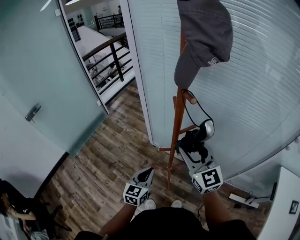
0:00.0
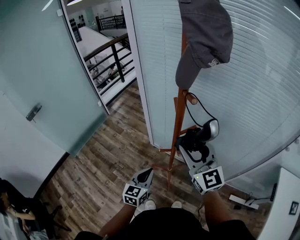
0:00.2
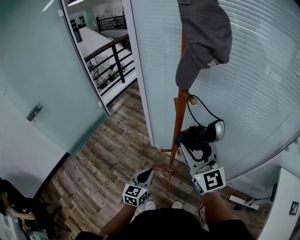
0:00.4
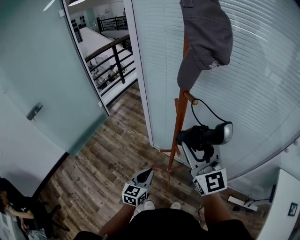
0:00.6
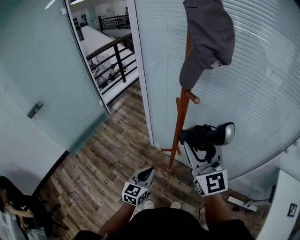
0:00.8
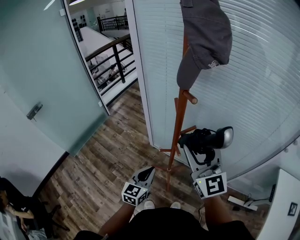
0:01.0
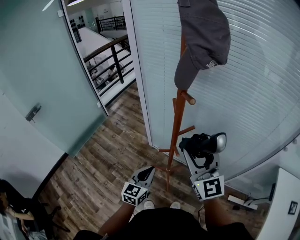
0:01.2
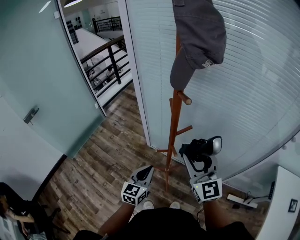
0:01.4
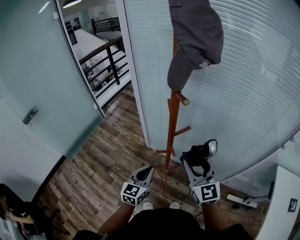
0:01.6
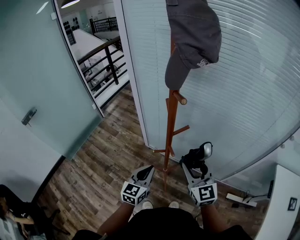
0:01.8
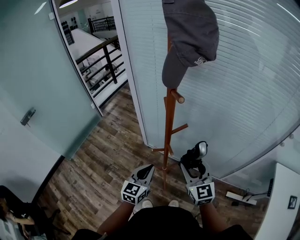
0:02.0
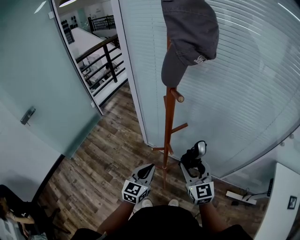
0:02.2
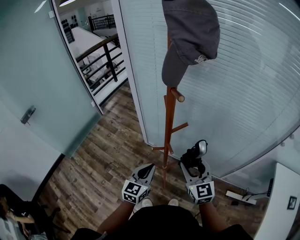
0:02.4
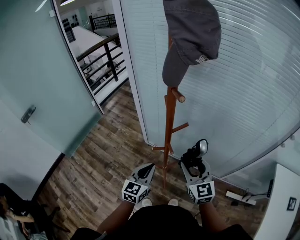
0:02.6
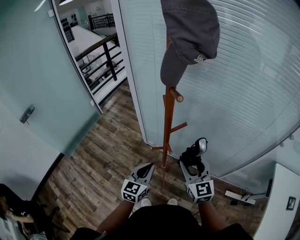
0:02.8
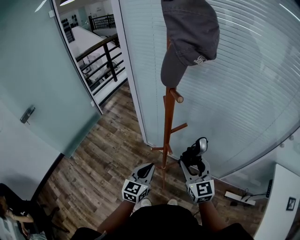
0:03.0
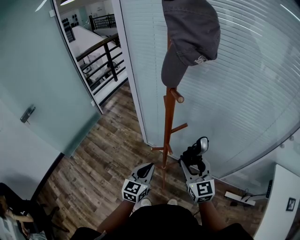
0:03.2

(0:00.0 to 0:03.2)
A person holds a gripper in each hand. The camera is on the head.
0:00.0 - 0:01.6: The right gripper goes upward and returns, about 10 cm each way.
0:01.6 - 0:03.2: The right gripper moves downward, roughly 5 cm.

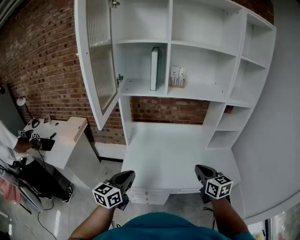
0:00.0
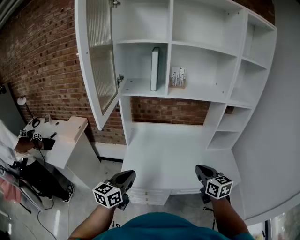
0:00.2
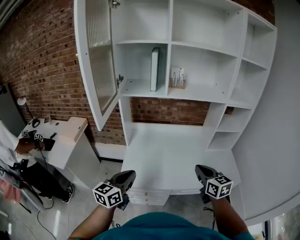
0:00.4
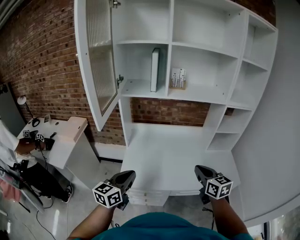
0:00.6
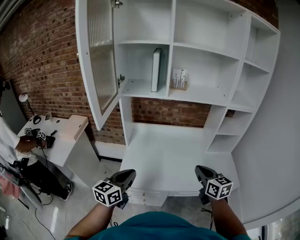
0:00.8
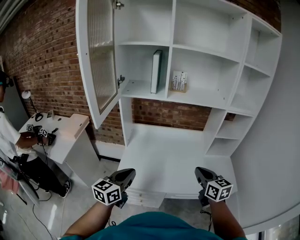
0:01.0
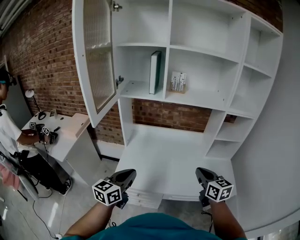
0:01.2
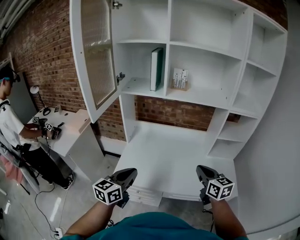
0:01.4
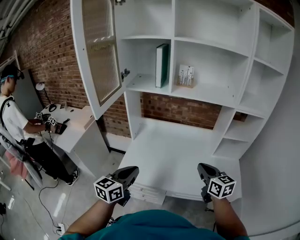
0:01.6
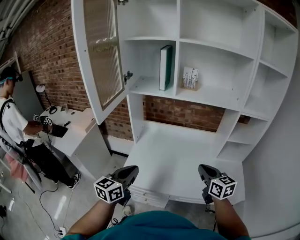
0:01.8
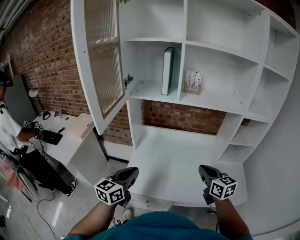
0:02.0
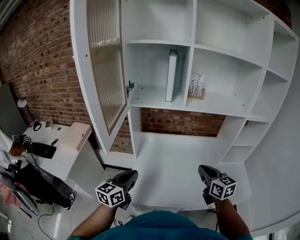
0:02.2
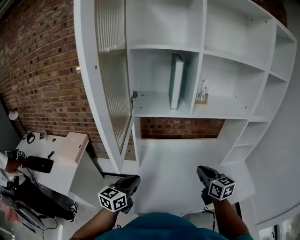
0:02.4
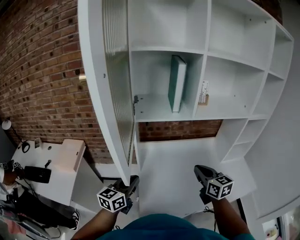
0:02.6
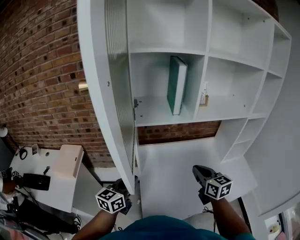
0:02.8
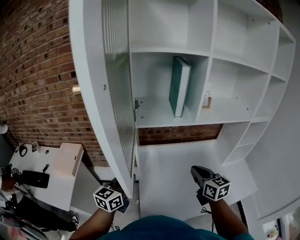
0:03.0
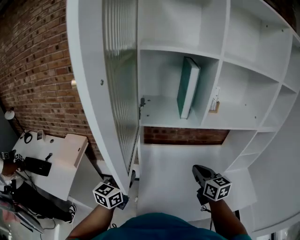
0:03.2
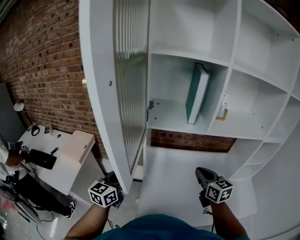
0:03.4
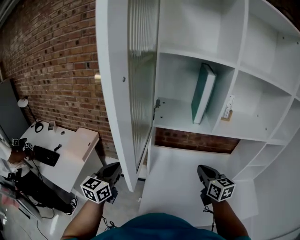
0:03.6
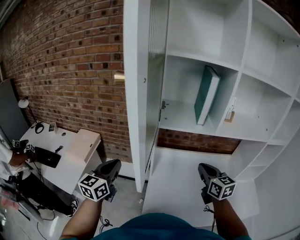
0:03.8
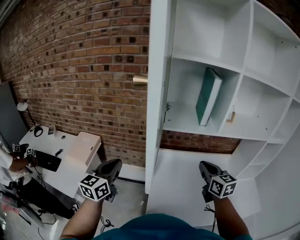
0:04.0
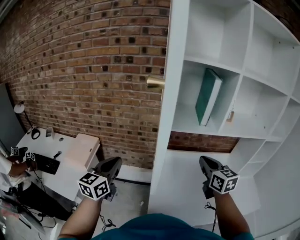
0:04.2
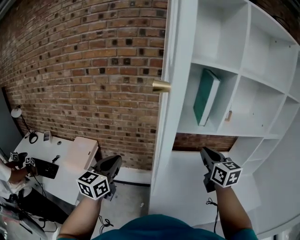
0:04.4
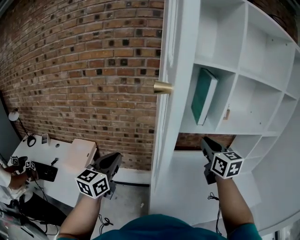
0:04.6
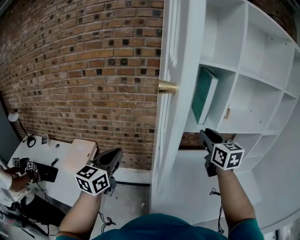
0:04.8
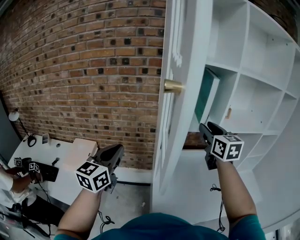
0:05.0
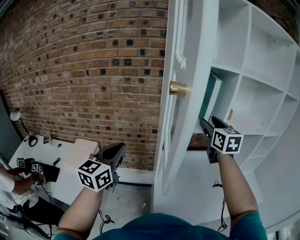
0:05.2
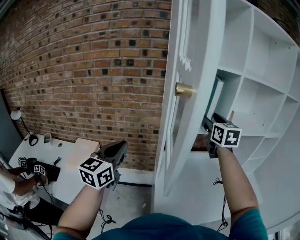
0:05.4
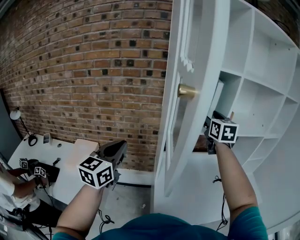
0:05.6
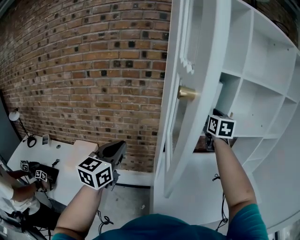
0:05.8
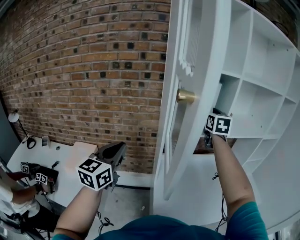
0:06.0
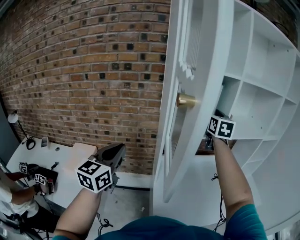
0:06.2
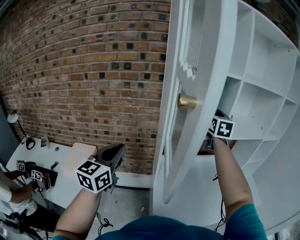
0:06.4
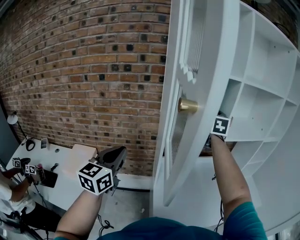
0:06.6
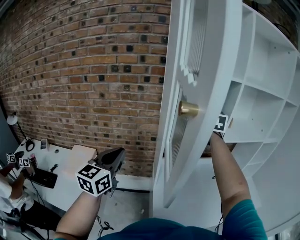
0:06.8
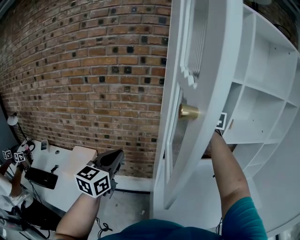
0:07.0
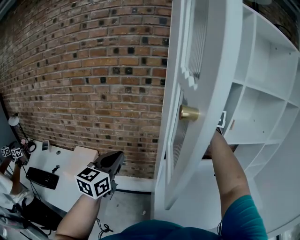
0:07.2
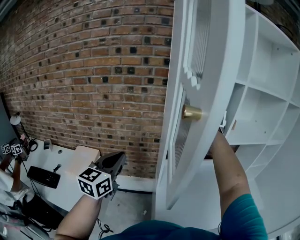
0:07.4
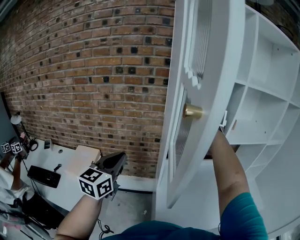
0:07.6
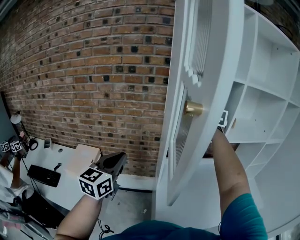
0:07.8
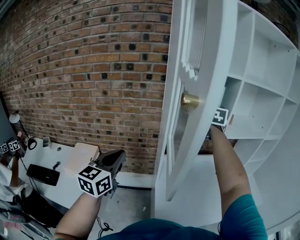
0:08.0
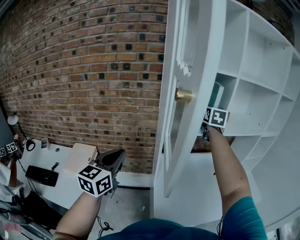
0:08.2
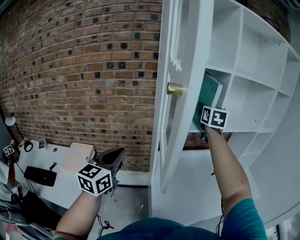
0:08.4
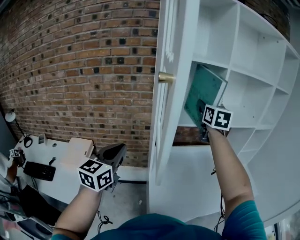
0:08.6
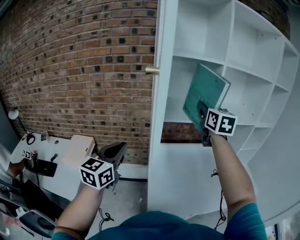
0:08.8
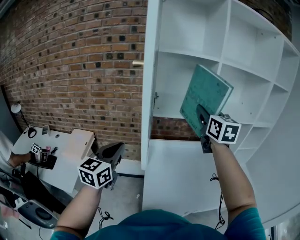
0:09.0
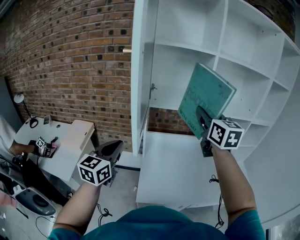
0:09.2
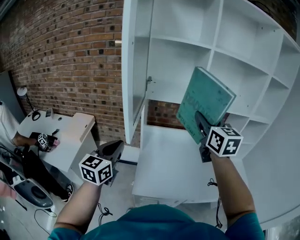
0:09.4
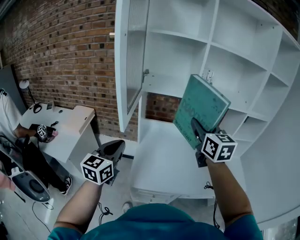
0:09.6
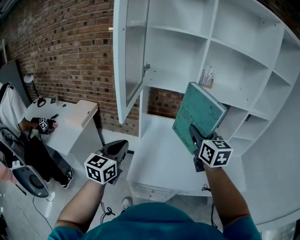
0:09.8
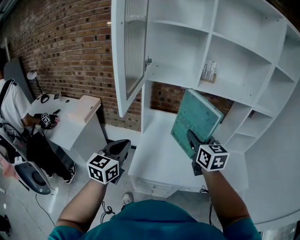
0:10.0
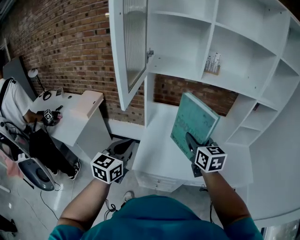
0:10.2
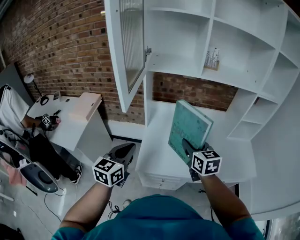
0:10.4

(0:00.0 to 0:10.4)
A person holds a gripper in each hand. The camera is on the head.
0:00.0 - 0:01.4: Both grippers travel together to the right, approximately 10 cm.
0:01.4 - 0:03.0: Both grippers move to the left and forward, roughly 30 cm.
0:03.0 - 0:04.4: The left gripper moves to the left and upward, roughly 20 cm, while the right gripper heads upward, to the left and forward, covering about 15 cm.
0:04.4 - 0:06.0: The right gripper goes approximately 20 cm forward and upward, rotates approximately 20 degrees, and opens, while the left gripper goes roughly 5 cm upward.
0:06.0 - 0:07.4: The grippers stay close to where they were, moving slightly.
0:07.4 - 0:09.0: The right gripper moves backward, roughly 15 cm, and closes its fingers. The left gripper is displaced to the right and backward by about 10 cm.
0:09.0 - 0:10.4: The left gripper travels downward, backward and to the right by about 25 cm. Meanwhile the right gripper heads downward and backward, covering some 35 cm, and rotates approximately 20 degrees.

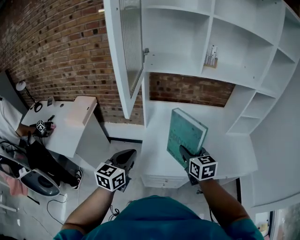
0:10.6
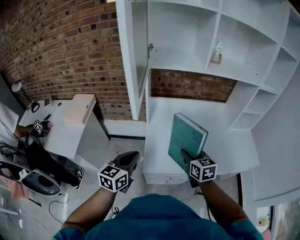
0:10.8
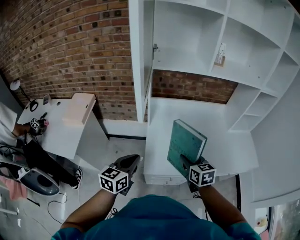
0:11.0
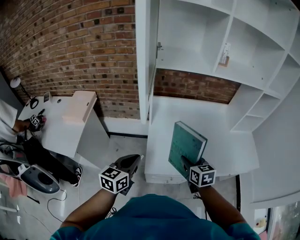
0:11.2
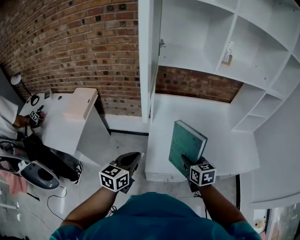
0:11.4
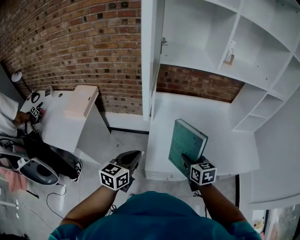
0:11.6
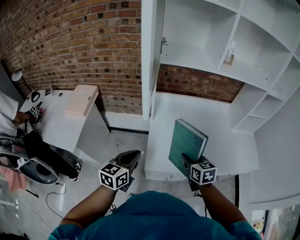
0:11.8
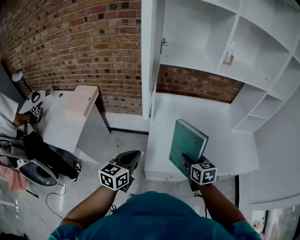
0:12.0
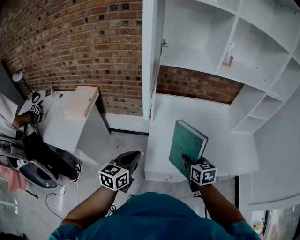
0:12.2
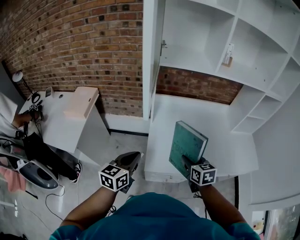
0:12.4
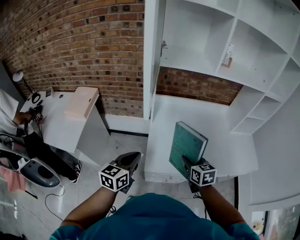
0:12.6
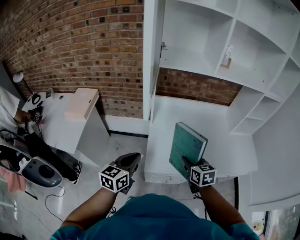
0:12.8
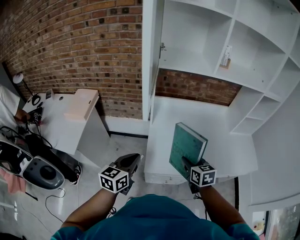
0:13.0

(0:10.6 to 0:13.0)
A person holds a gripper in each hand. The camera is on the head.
0:10.6 - 0:11.8: The right gripper goes roughly 10 cm downward, while the left gripper ends up roughly 5 cm from where it was.
0:11.8 - 0:13.0: Neither gripper changes place.

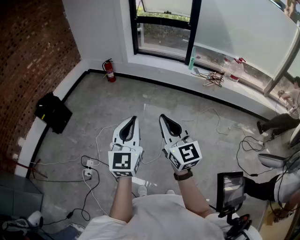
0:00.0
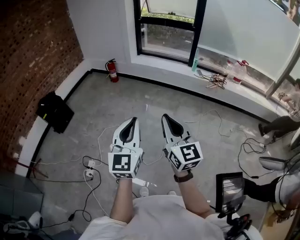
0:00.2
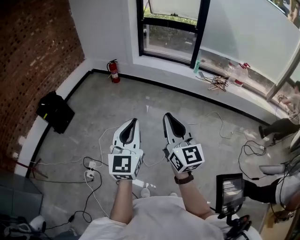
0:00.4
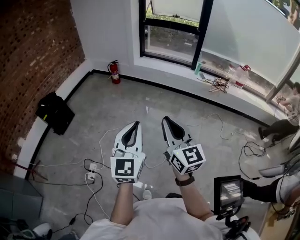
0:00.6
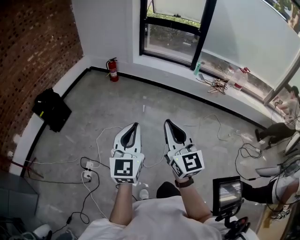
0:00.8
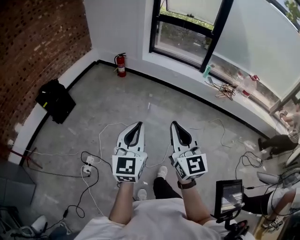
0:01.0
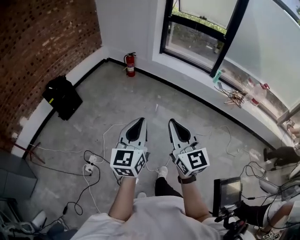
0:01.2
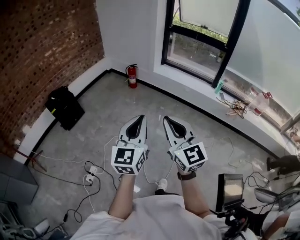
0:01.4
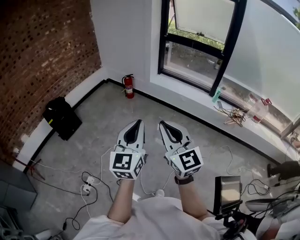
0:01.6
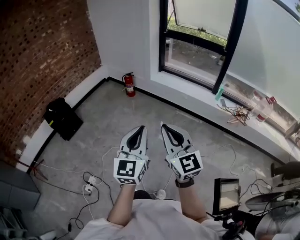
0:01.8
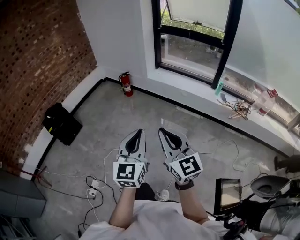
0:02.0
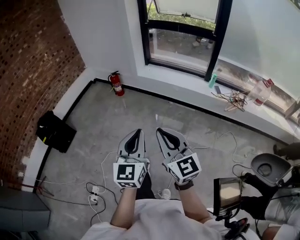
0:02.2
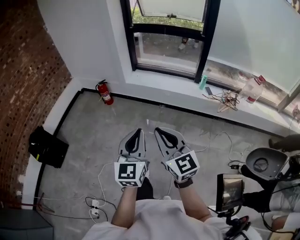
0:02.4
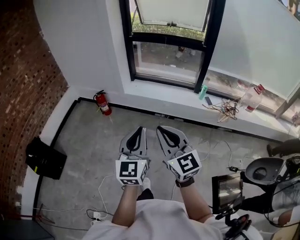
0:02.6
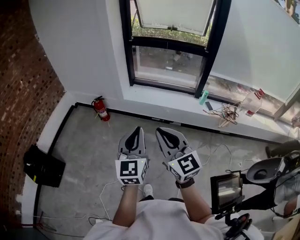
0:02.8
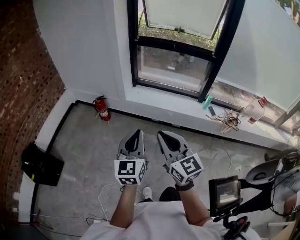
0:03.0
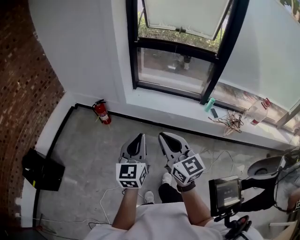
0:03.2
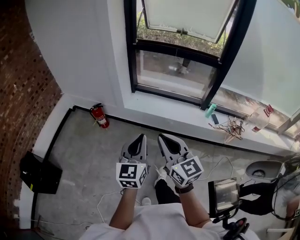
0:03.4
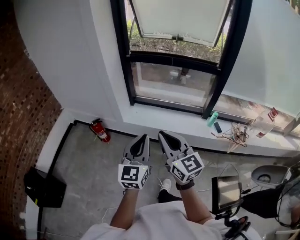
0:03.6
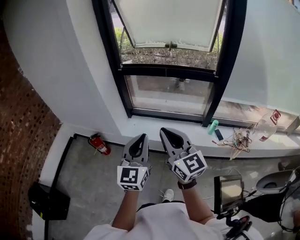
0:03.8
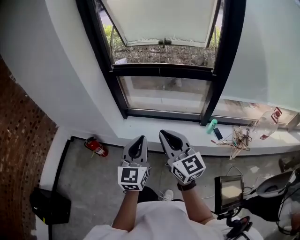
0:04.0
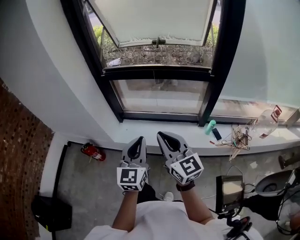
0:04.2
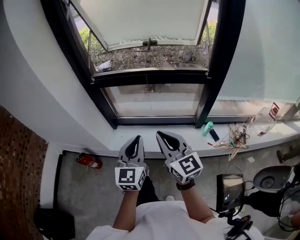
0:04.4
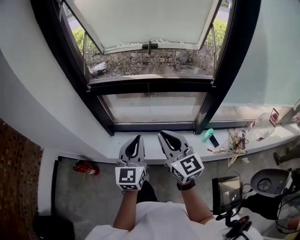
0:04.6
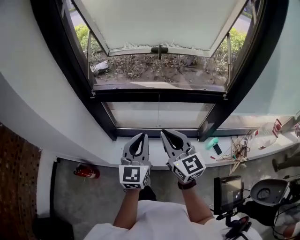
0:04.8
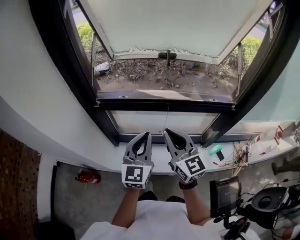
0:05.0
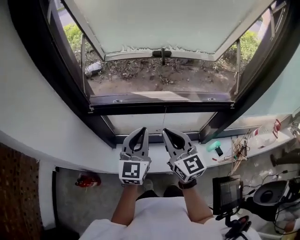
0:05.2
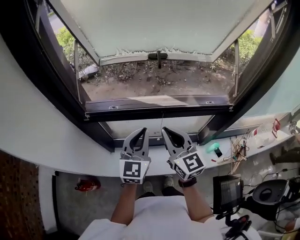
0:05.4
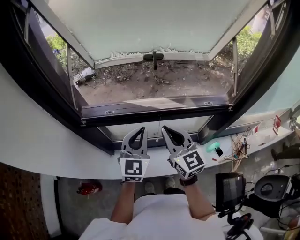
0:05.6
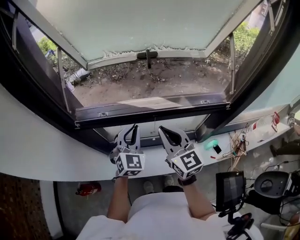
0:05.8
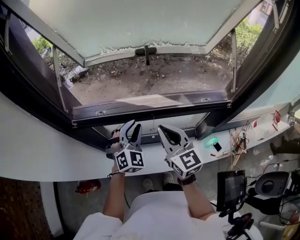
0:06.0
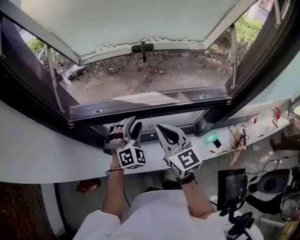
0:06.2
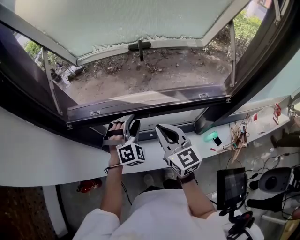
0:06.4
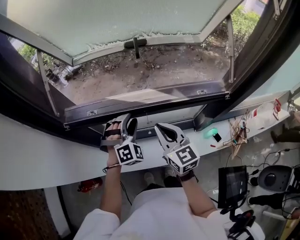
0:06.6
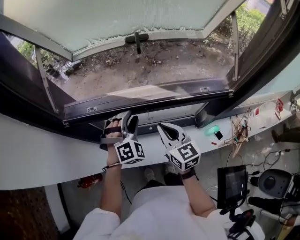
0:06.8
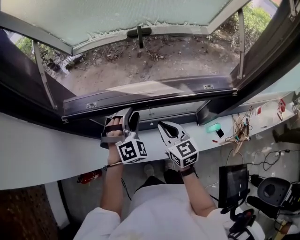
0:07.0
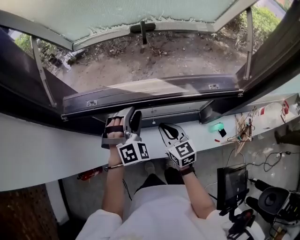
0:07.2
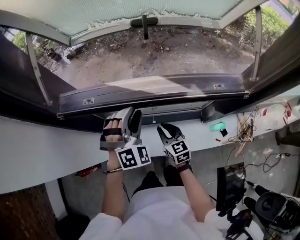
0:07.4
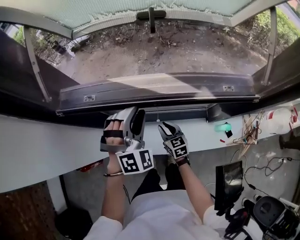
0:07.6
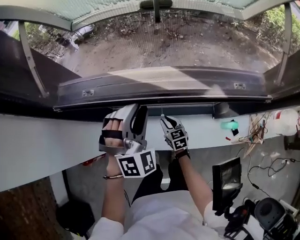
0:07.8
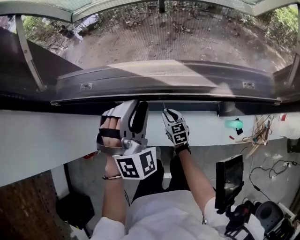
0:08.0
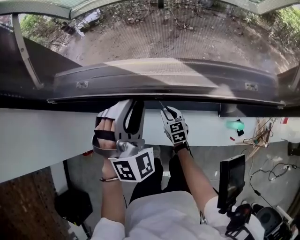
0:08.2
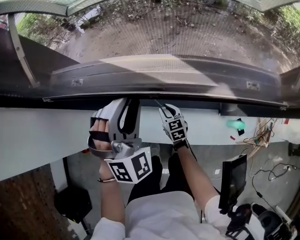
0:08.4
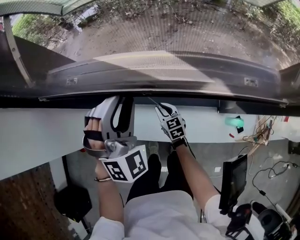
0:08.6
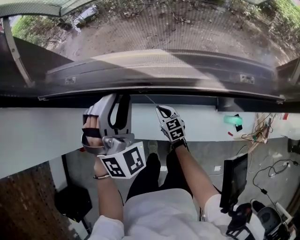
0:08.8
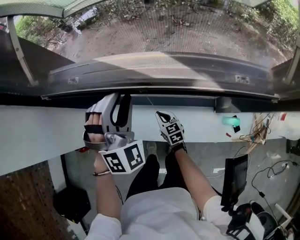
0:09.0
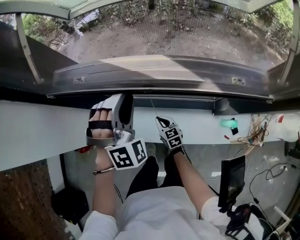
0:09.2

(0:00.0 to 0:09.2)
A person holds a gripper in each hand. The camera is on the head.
0:00.0 - 0:01.6: Both grippers move forward, some 25 cm.
0:01.6 - 0:03.0: Both grippers are carried forward, some 50 cm.
0:03.0 - 0:04.6: The pair of grippers is taken forward, roughly 70 cm.
0:04.6 - 0:06.2: The grippers both shift forward by about 30 cm. The left gripper rotates around the line of its fingers by about 60 degrees, clockwise from behind, and opens its fingers.
0:06.2 - 0:07.6: The right gripper heads downward, covering roughly 30 cm, and turns by about 30 degrees.
0:07.6 - 0:09.2: The right gripper heads downward, covering some 10 cm.
